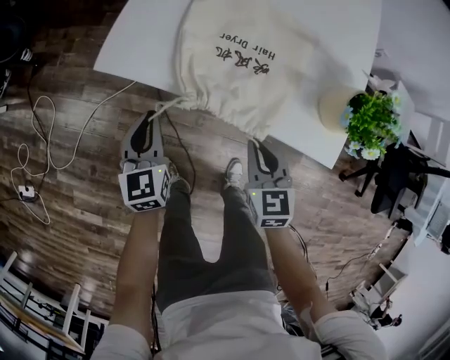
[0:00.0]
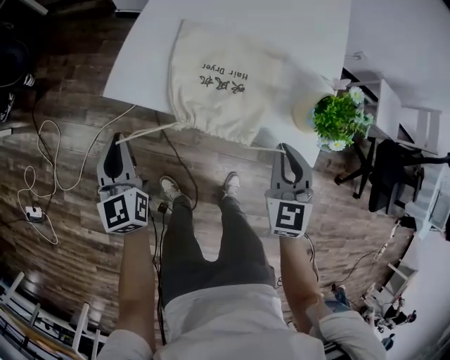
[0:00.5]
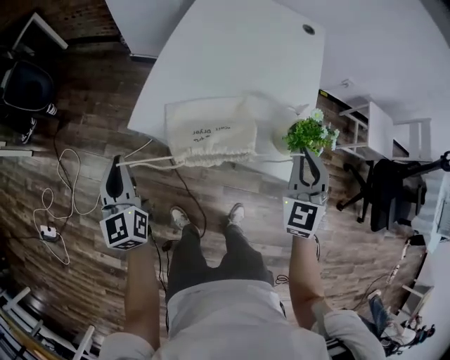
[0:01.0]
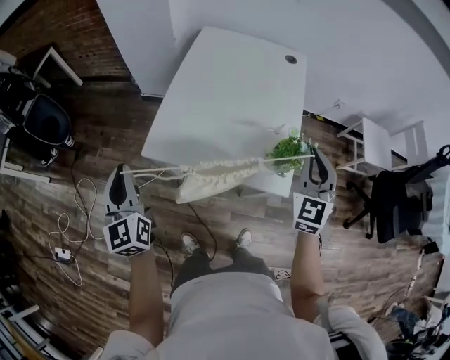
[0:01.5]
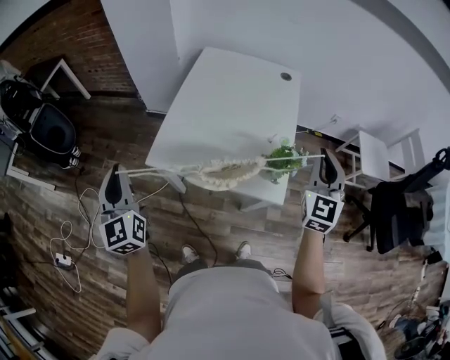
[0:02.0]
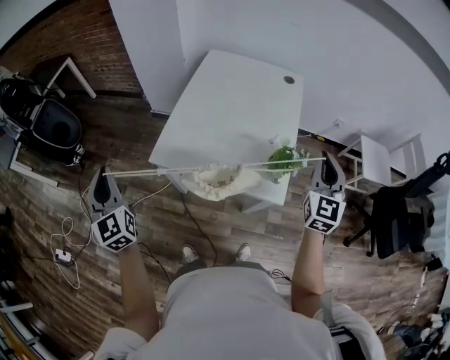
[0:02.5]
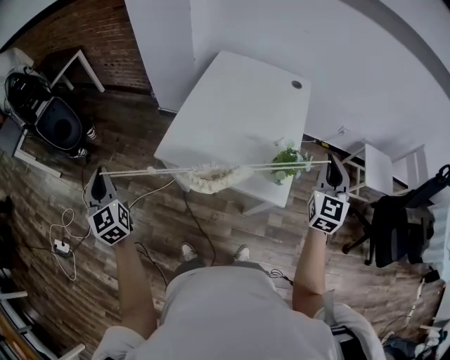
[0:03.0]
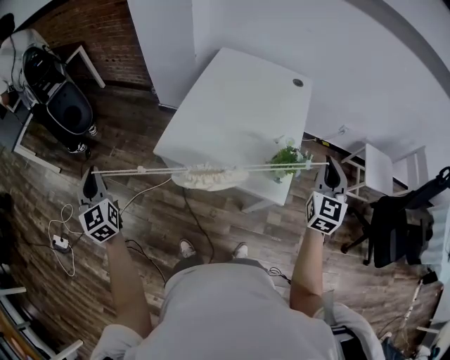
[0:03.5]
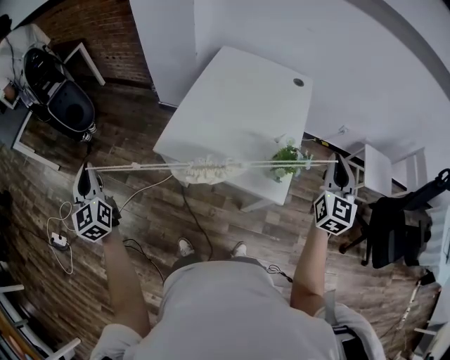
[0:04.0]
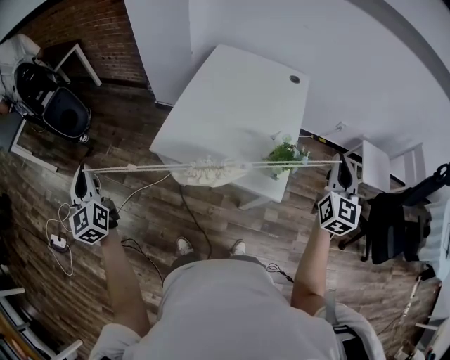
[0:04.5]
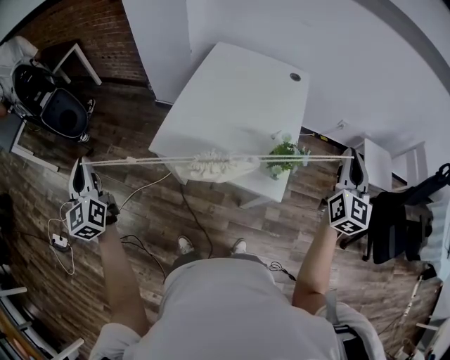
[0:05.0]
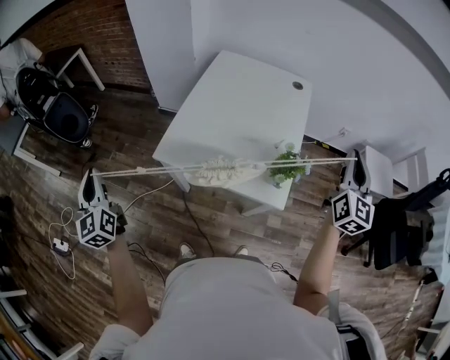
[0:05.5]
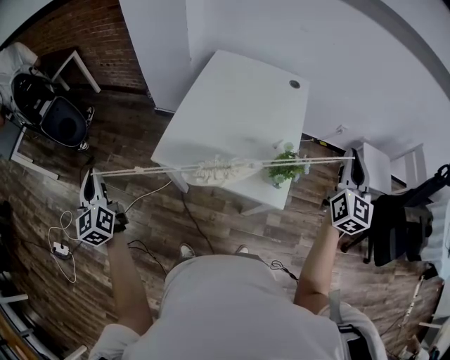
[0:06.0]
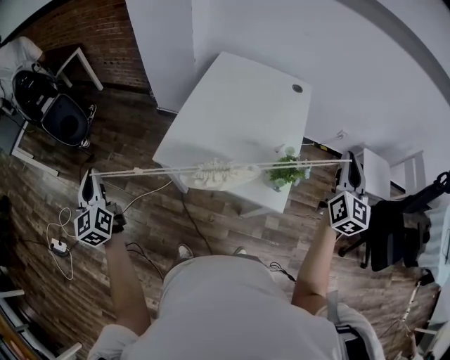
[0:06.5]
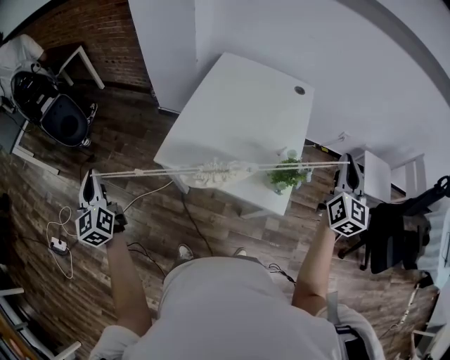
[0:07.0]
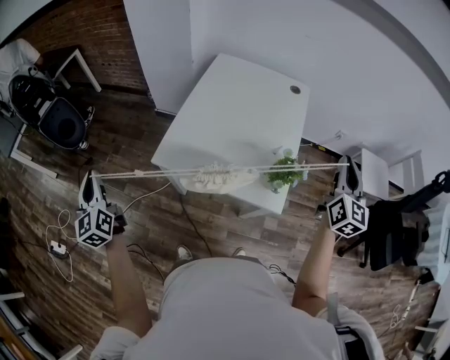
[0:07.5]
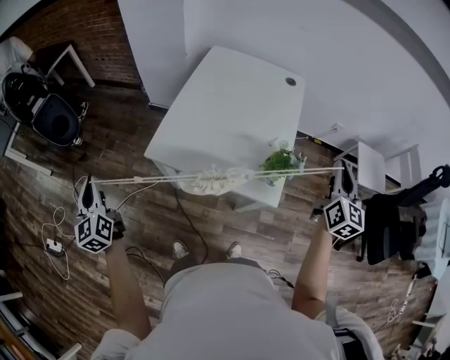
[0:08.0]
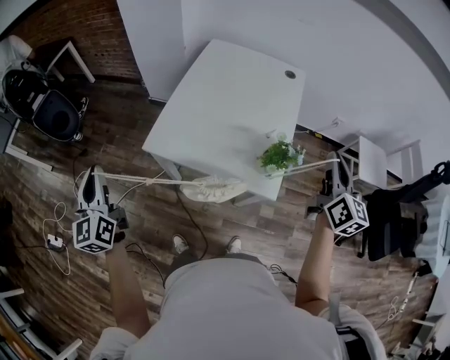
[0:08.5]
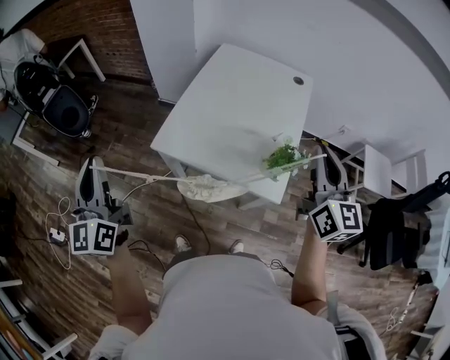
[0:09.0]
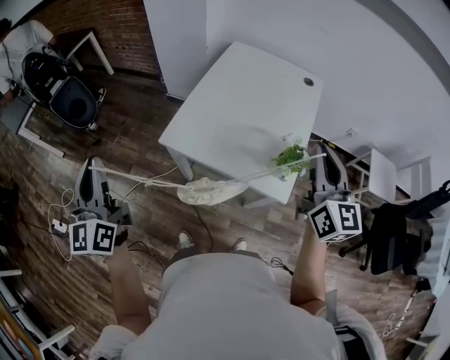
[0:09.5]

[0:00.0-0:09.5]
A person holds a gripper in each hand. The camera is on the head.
0:00.0 to 0:02.0: The left gripper shifts some 50 cm upward, and changes its angle by approximately 30 degrees. Meanwhile the right gripper travels upward and to the right by about 50 cm, and tilts its fingers approximately 40 degrees upward.
0:02.0 to 0:04.0: The left gripper goes some 15 cm to the left and backward.
0:04.0 to 0:05.5: The right gripper moves some 5 cm.
0:05.5 to 0:07.5: The grippers make only small movements.
0:07.5 to 0:09.5: The left gripper heads upward, to the right and backward, covering about 15 cm. The right gripper moves to the left, approximately 15 cm, and rotates some 20 degrees.

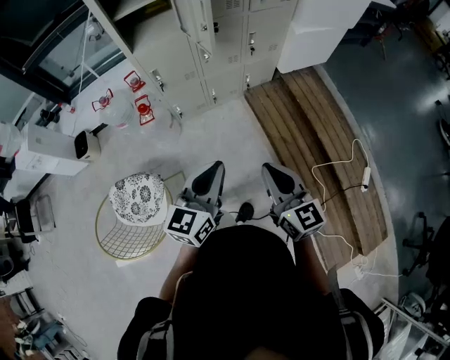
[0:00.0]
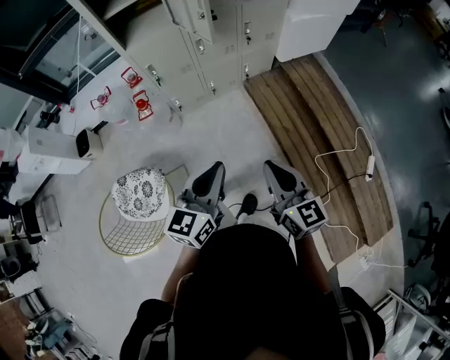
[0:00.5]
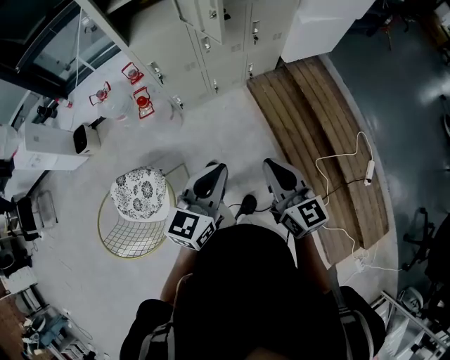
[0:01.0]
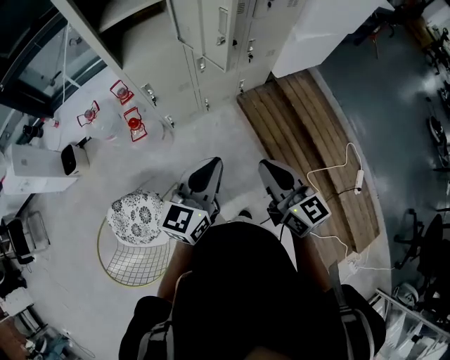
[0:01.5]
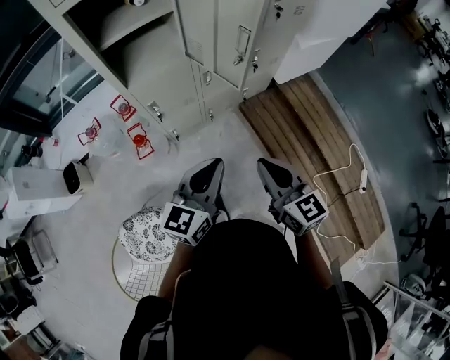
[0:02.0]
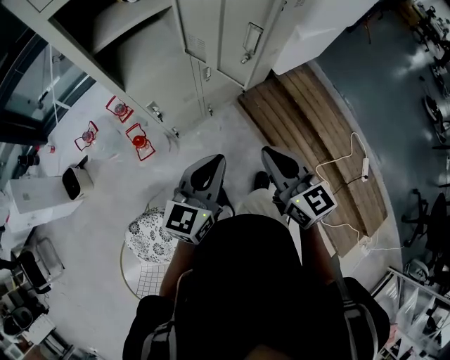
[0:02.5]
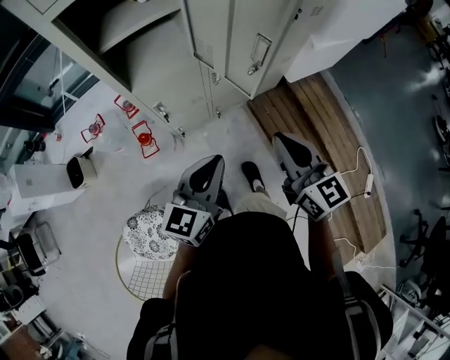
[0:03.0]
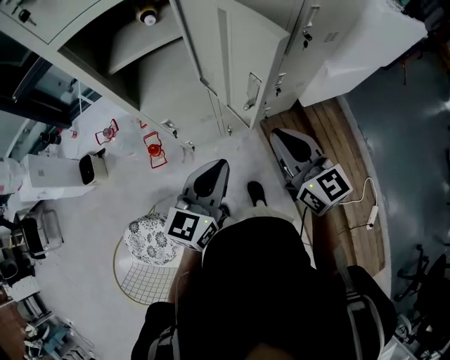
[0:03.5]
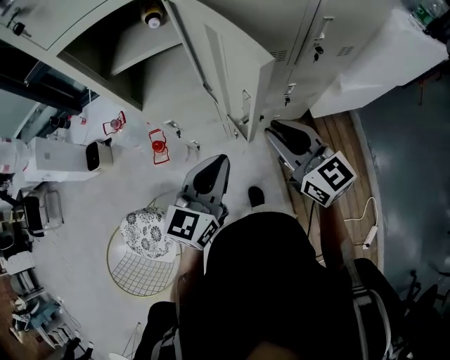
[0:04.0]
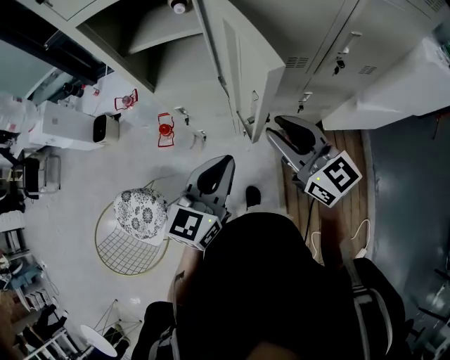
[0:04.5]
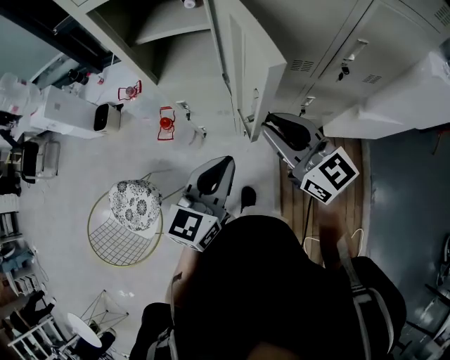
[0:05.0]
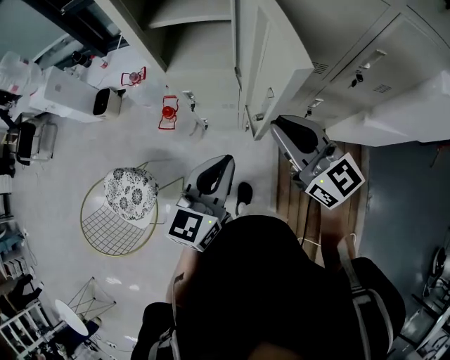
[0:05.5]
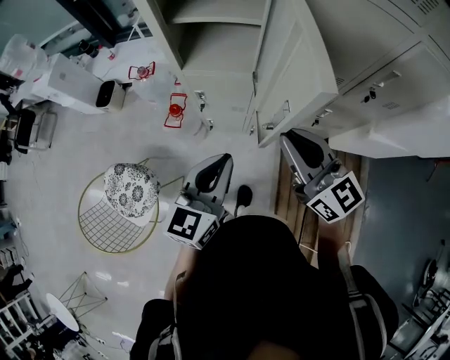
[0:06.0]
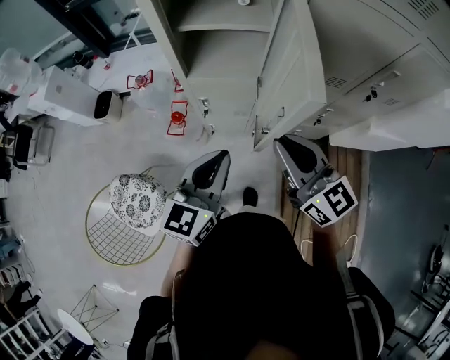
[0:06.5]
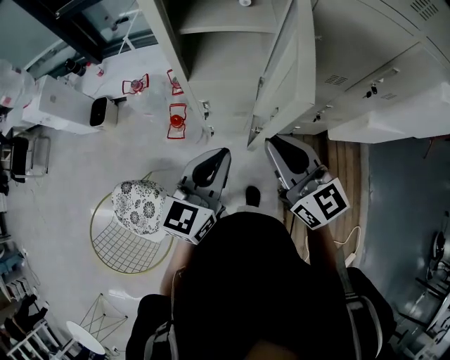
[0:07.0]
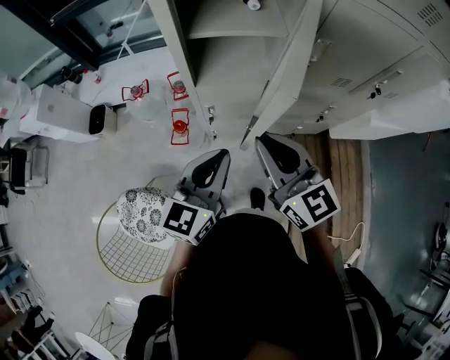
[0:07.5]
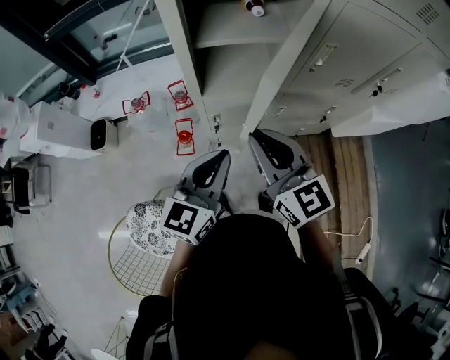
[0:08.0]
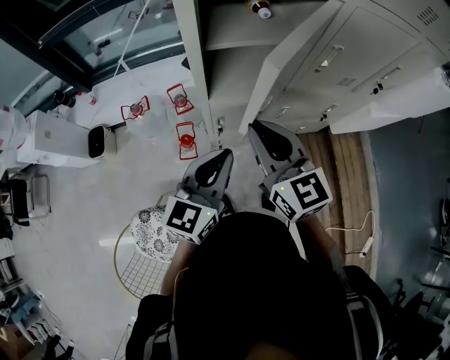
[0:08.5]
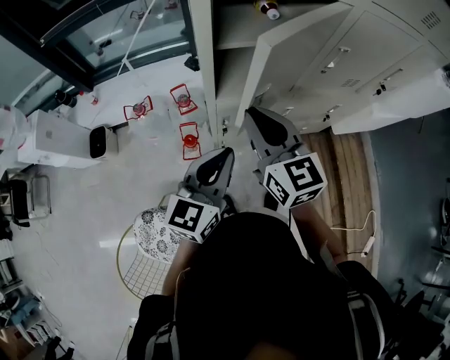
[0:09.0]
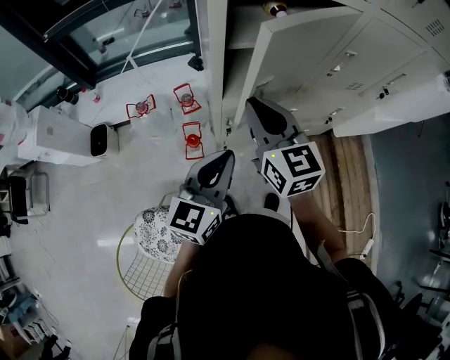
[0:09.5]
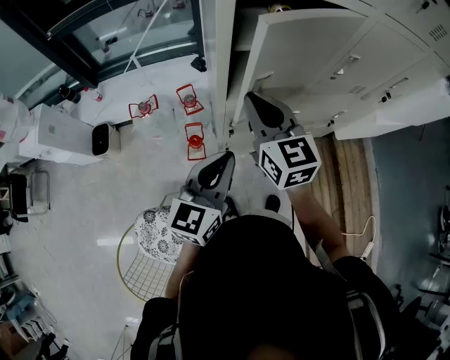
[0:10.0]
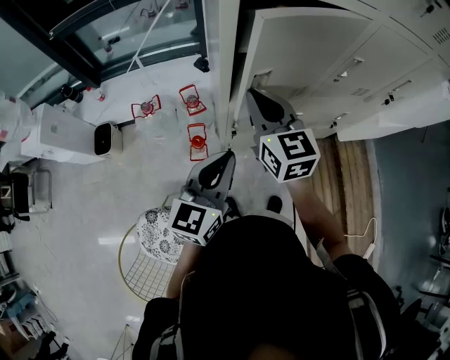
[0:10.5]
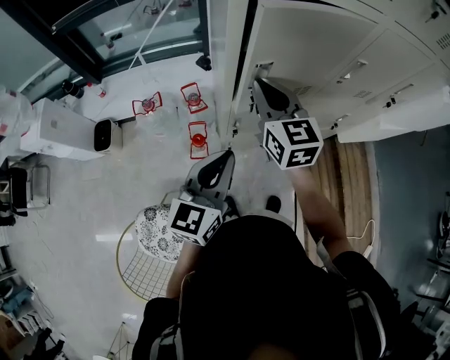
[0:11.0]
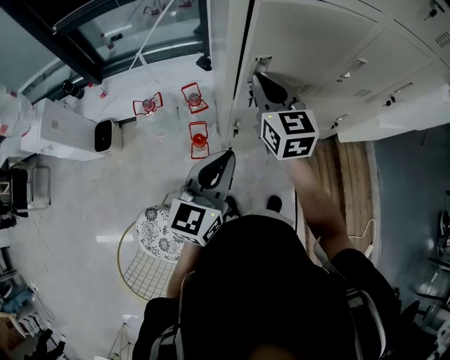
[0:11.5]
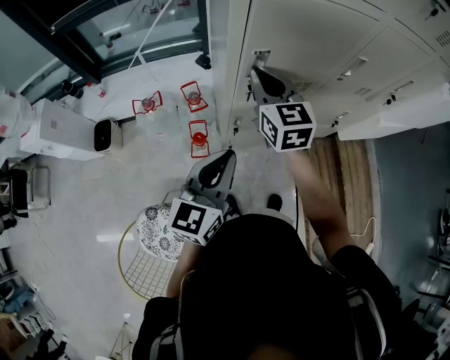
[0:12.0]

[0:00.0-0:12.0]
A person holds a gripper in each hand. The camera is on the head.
0:00.0 to 0:02.0: The two grippers go approximately 25 cm forward and to the left.
0:02.0 to 0:04.0: The left gripper heads forward, covering some 15 cm. The right gripper is displaced forward by about 25 cm, and turns by approximately 30 degrees.
0:04.0 to 0:06.0: The two grippers go roughly 5 cm to the left.
0:06.0 to 0:08.0: The right gripper shifts some 20 cm to the left. Meanwhile the left gripper is displaced to the left and forward by some 15 cm.
0:08.0 to 0:10.0: The right gripper shifts some 15 cm to the left and forward. Meanwhile the left gripper goes some 10 cm to the left.
0:10.0 to 0:12.0: The right gripper travels forward by about 5 cm.

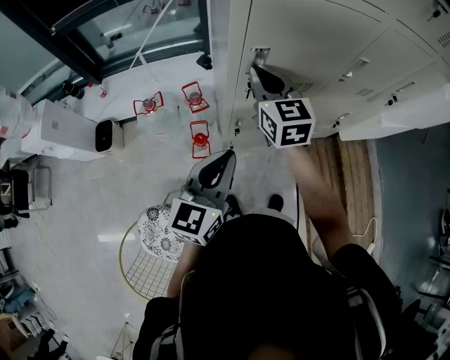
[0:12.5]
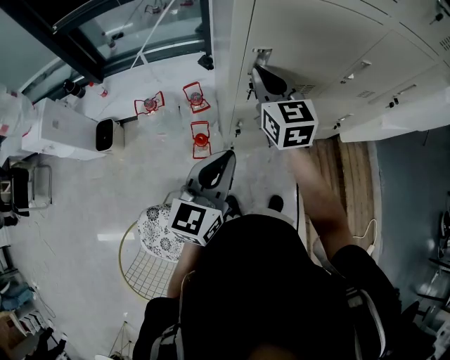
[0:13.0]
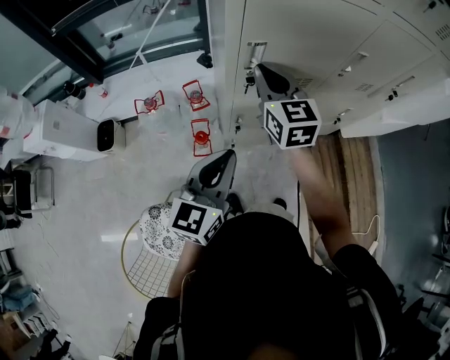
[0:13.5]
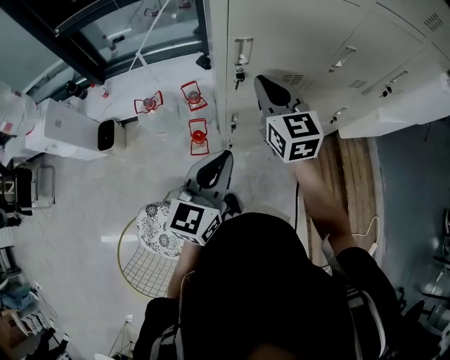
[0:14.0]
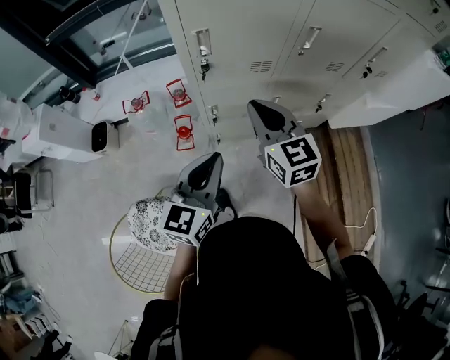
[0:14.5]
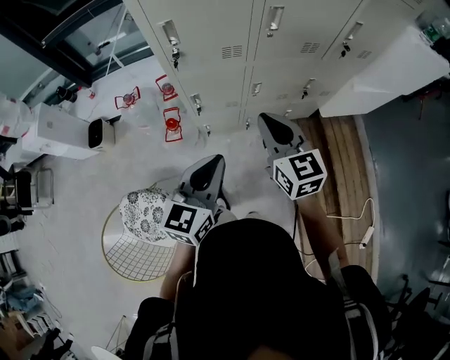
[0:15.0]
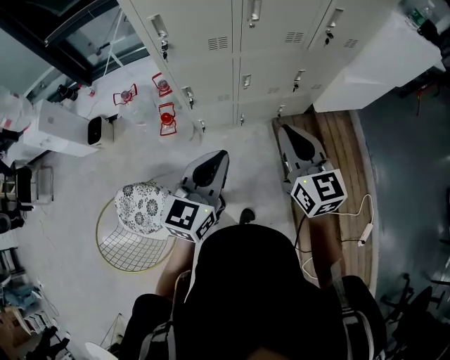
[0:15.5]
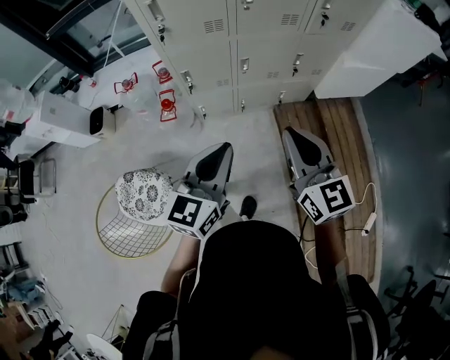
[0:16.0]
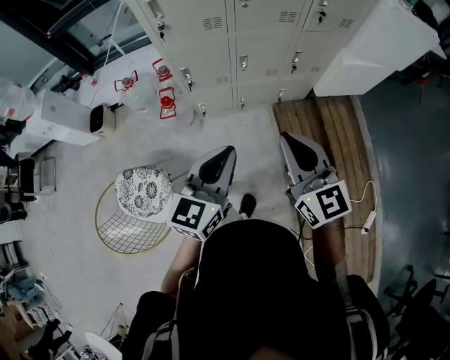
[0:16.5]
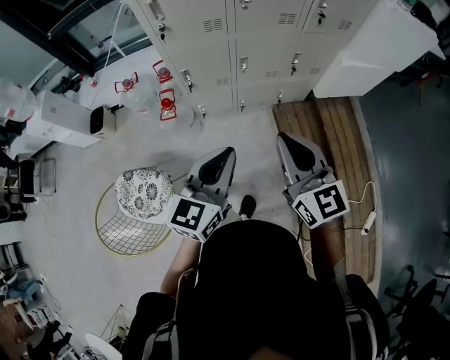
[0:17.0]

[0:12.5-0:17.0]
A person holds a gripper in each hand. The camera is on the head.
0:12.5 to 0:14.5: The right gripper heads backward and to the right, covering roughly 20 cm. Meanwhile the left gripper is displaced to the right and backward by roughly 10 cm.
0:14.5 to 0:17.0: The grippers both shift backward and to the right by roughly 30 cm.

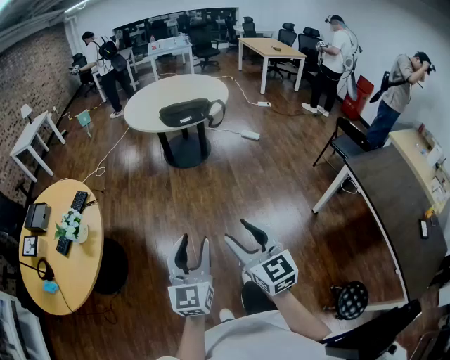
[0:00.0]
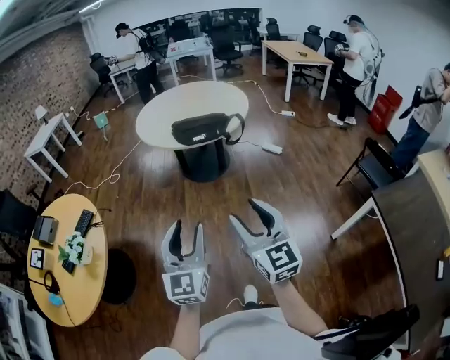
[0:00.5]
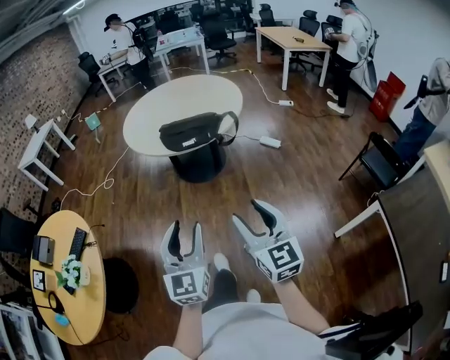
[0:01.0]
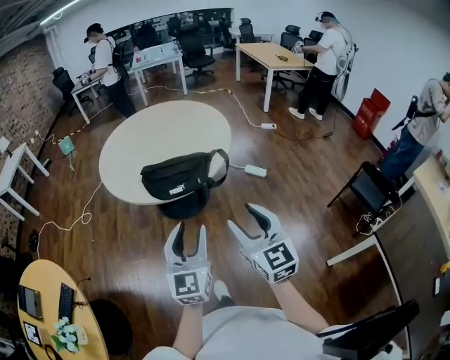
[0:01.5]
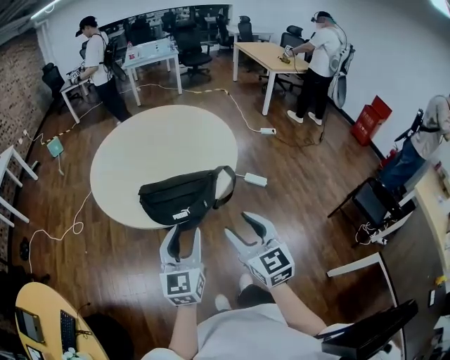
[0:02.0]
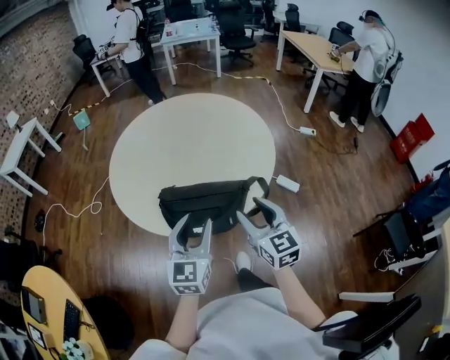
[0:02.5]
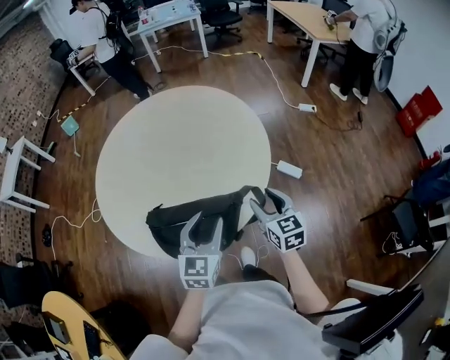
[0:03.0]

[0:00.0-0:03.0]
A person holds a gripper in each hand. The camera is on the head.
0:00.0 to 0:01.5: The pair of grippers is taken forward, roughly 60 cm.
0:01.5 to 0:03.0: The pair of grippers is taken forward, about 50 cm. The right gripper turns by roughly 20 degrees. The left gripper swivels about 20 degrees.
